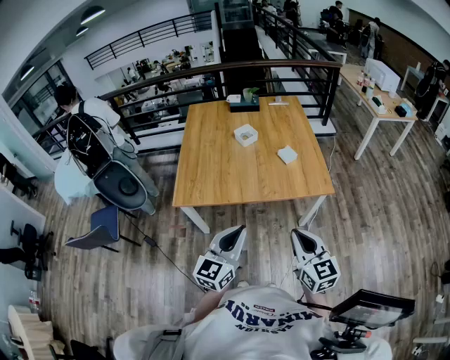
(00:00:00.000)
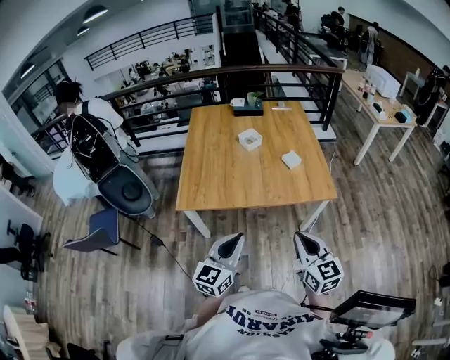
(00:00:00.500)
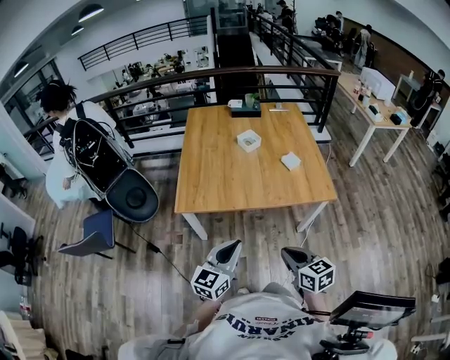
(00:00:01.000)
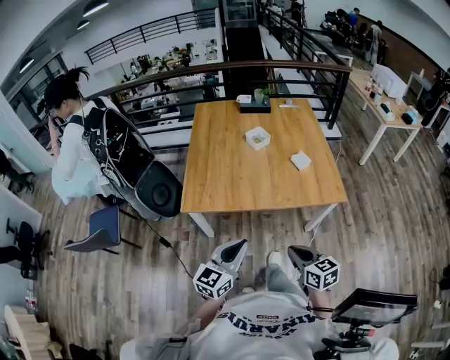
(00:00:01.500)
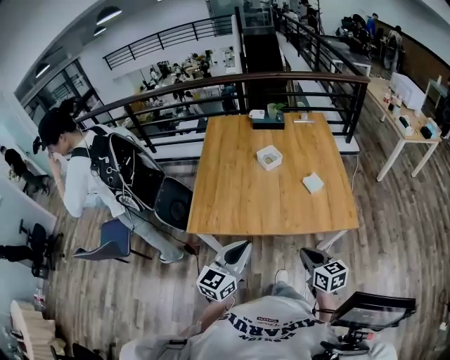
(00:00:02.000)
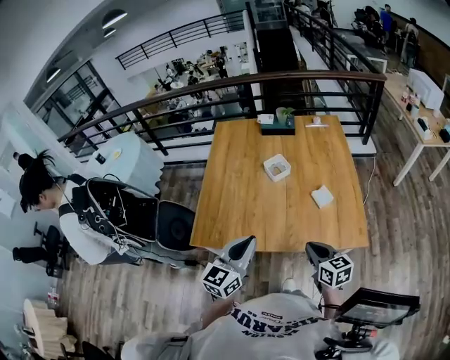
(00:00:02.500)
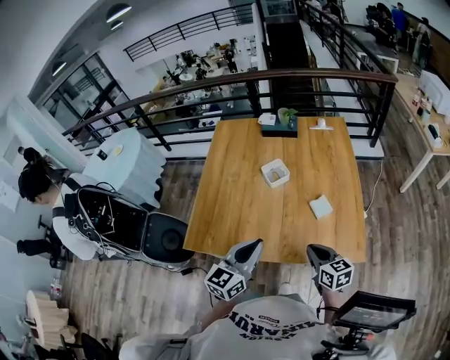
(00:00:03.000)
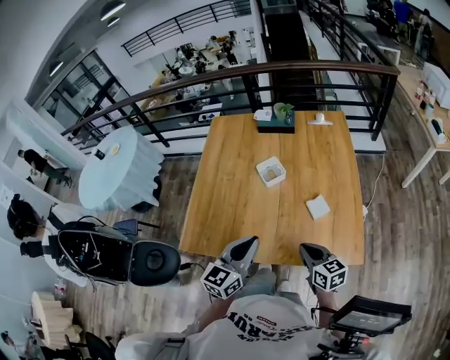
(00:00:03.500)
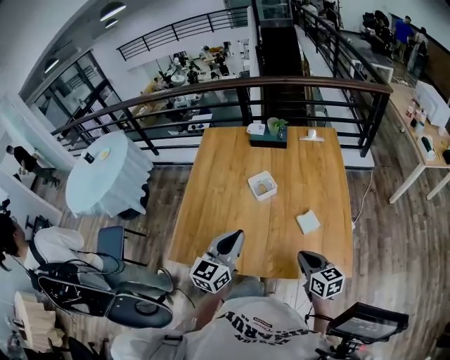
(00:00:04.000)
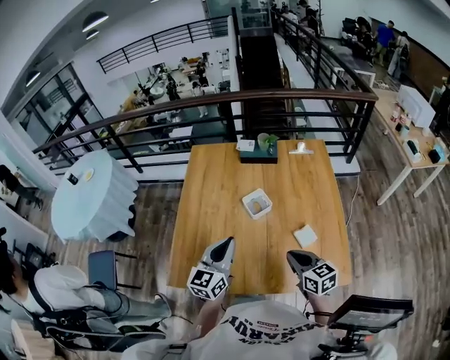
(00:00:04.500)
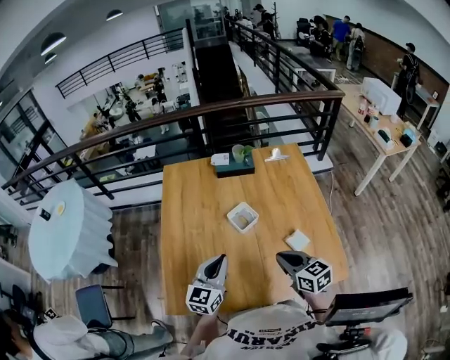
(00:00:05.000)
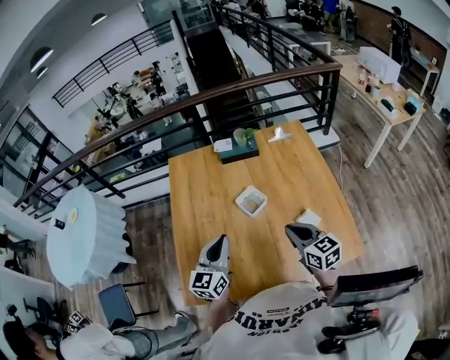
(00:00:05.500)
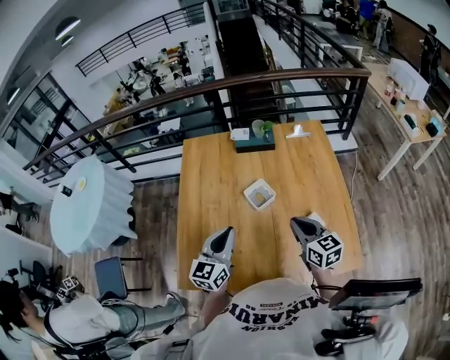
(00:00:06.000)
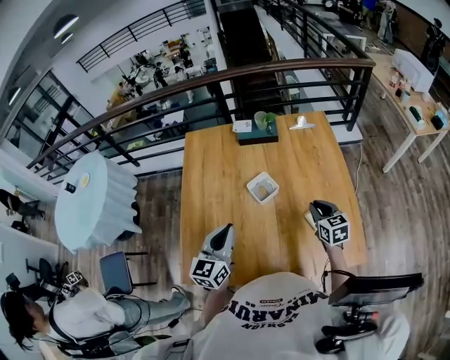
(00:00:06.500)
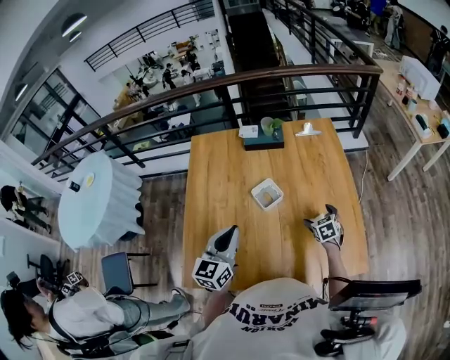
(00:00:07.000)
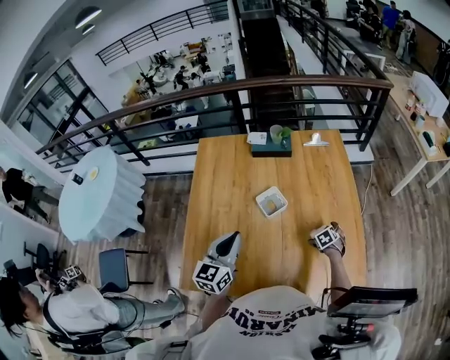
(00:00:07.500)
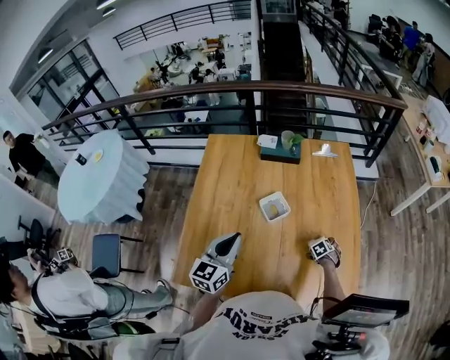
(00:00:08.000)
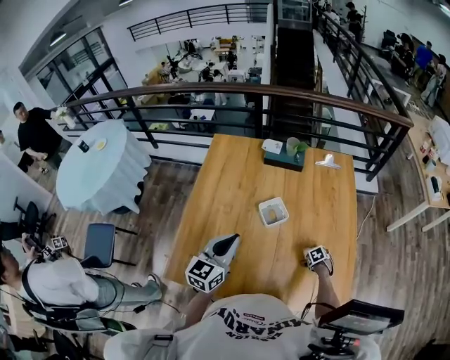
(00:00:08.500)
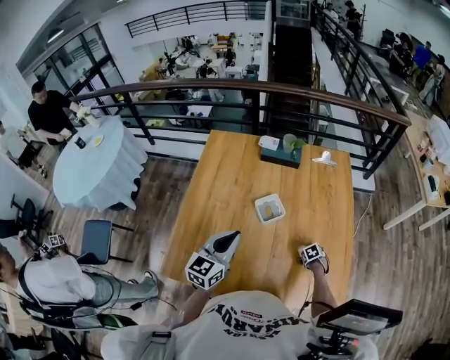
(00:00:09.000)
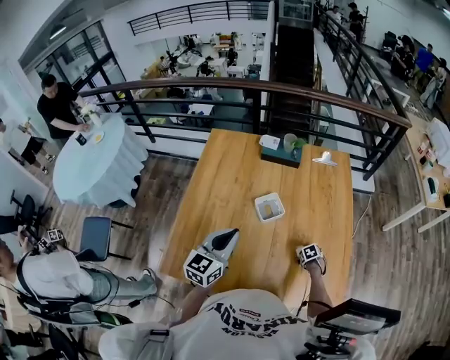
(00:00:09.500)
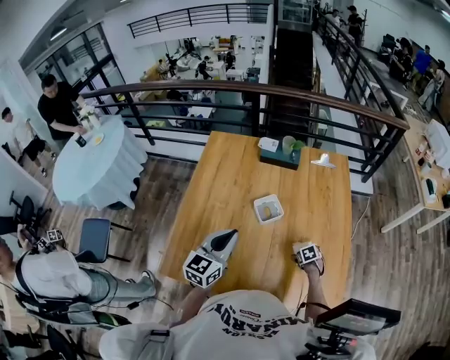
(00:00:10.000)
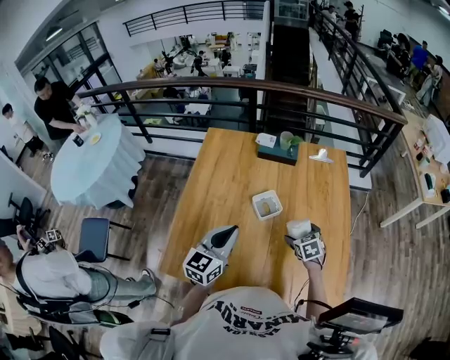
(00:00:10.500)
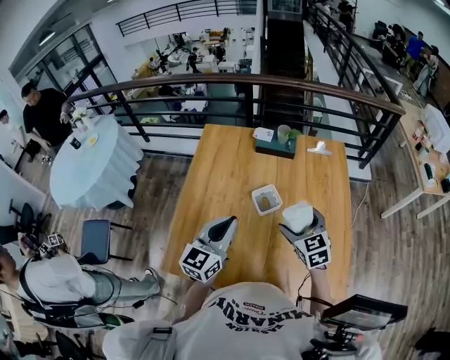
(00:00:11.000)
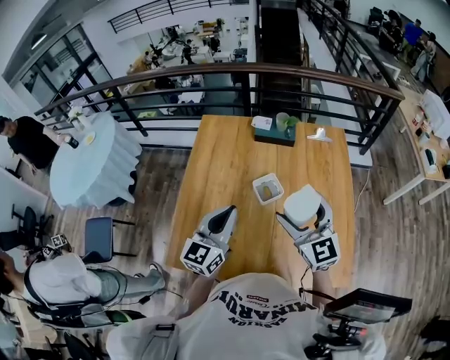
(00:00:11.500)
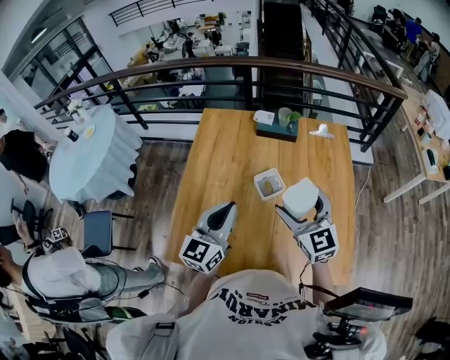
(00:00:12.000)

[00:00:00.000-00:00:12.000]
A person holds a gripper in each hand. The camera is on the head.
00:00:00.000 to 00:00:02.000: The left gripper goes roughly 15 cm forward and to the left; the right gripper is displaced forward and downward by some 20 cm, and swivels roughly 20 degrees.
00:00:02.000 to 00:00:04.000: The left gripper heads forward, covering some 30 cm, while the right gripper heads forward and to the right, covering approximately 30 cm.
00:00:04.000 to 00:00:06.000: The left gripper shifts about 15 cm forward and to the left, while the right gripper shifts approximately 20 cm forward, upward and to the left.
00:00:06.000 to 00:00:08.000: The right gripper heads downward, covering some 40 cm, points its fingers approximately 60 degrees further downward, and opens.
00:00:08.000 to 00:00:10.000: The right gripper shifts by some 5 cm.
00:00:10.000 to 00:00:12.000: The left gripper moves upward, some 5 cm. The right gripper goes approximately 40 cm upward, and points its fingers roughly 70 degrees further upward.

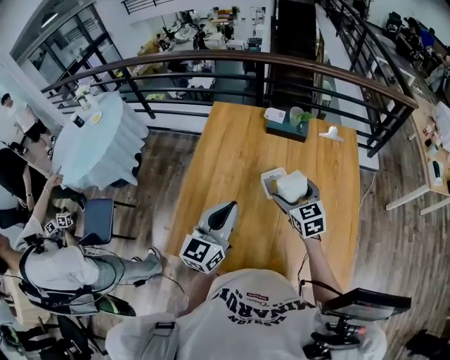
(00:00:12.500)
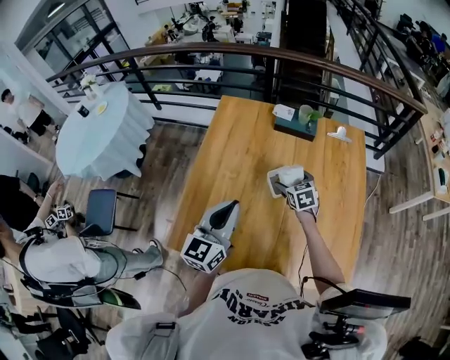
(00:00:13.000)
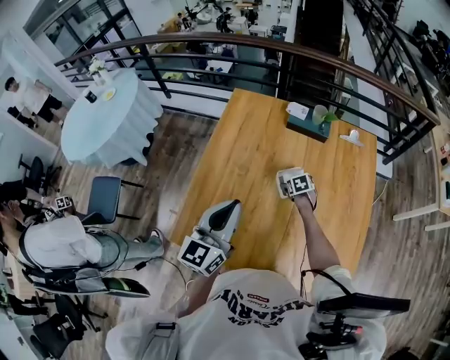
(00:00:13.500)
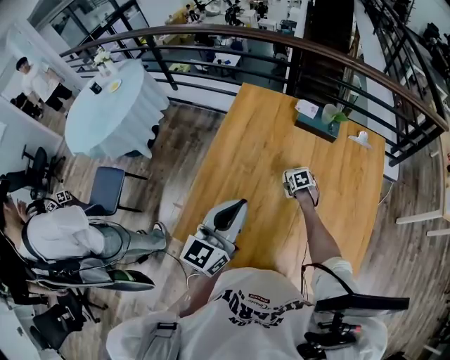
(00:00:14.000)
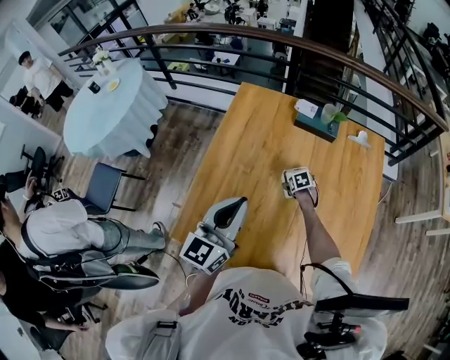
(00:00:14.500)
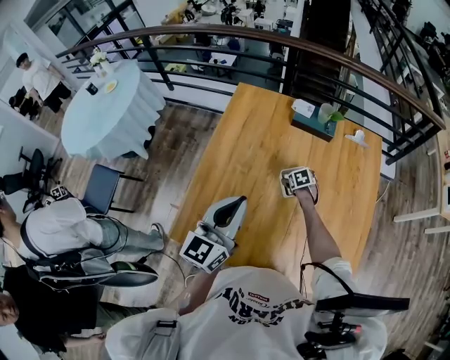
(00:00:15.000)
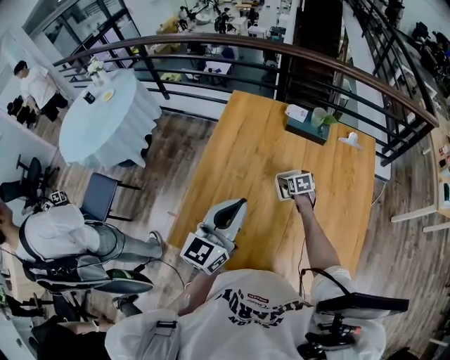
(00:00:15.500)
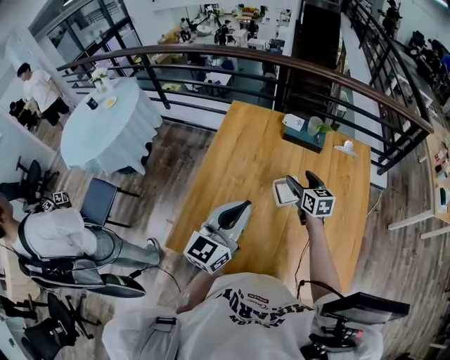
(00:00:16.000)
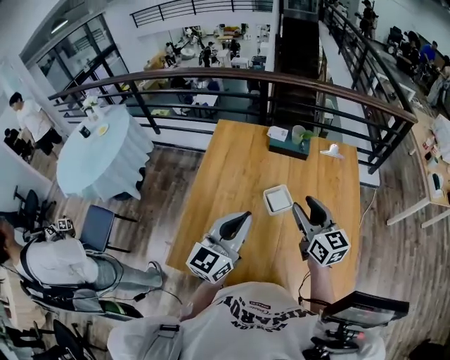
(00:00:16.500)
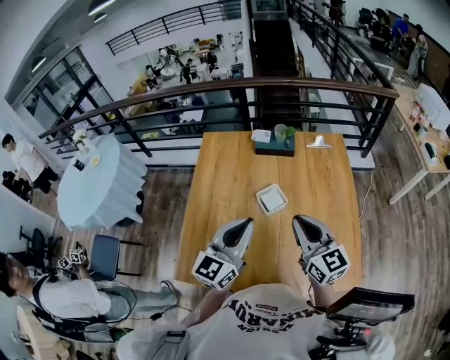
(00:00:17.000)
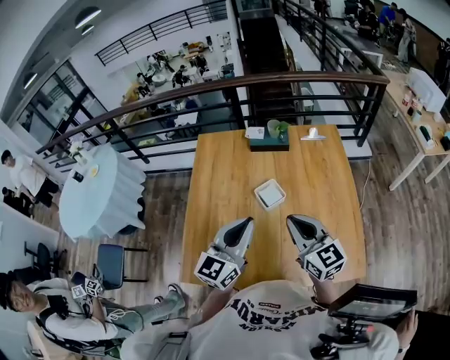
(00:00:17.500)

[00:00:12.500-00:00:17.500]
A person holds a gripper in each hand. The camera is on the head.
00:00:12.500 to 00:00:15.000: The right gripper shifts roughly 30 cm downward and forward, and tilts its fingers some 40 degrees downward. Meanwhile the left gripper ends up about 5 cm from where it was.
00:00:15.000 to 00:00:17.500: The left gripper goes roughly 15 cm to the right and backward. The right gripper shifts roughly 50 cm upward and backward, tilts its fingers approximately 60 degrees upward, and closes.

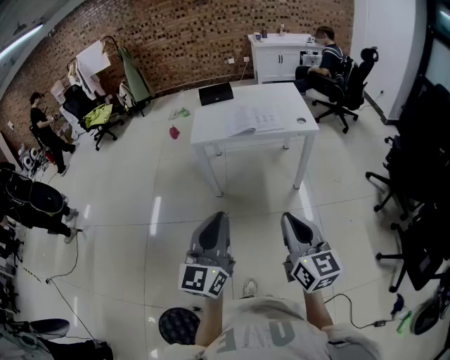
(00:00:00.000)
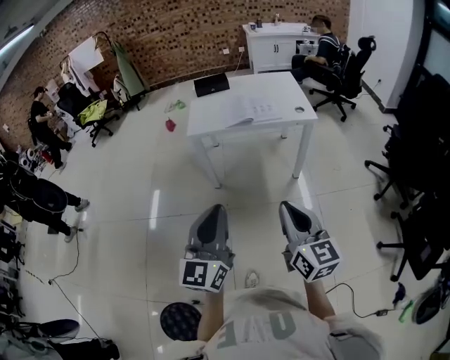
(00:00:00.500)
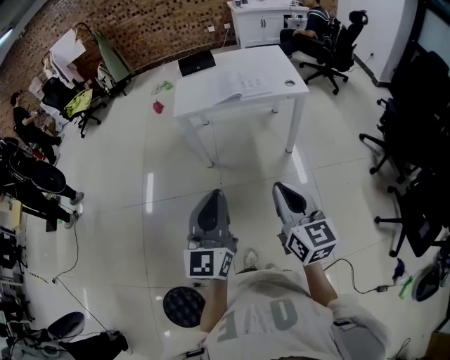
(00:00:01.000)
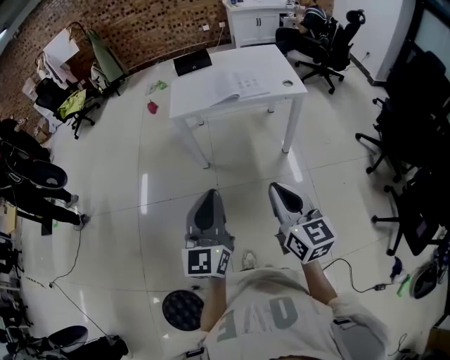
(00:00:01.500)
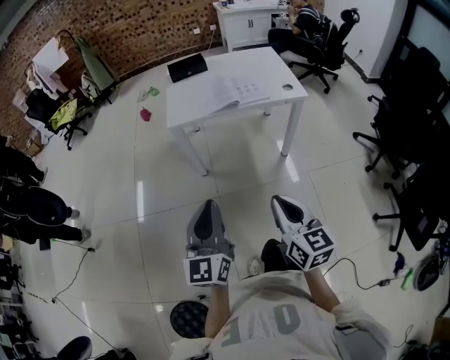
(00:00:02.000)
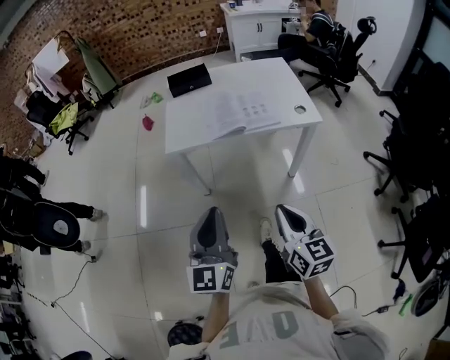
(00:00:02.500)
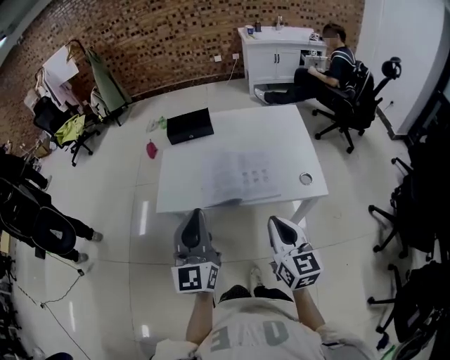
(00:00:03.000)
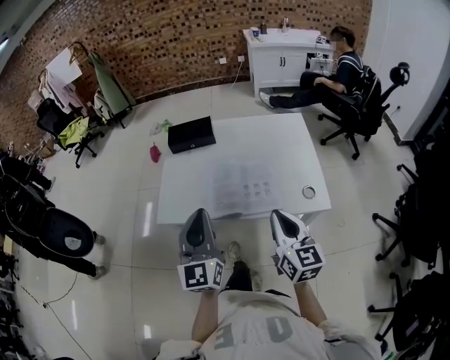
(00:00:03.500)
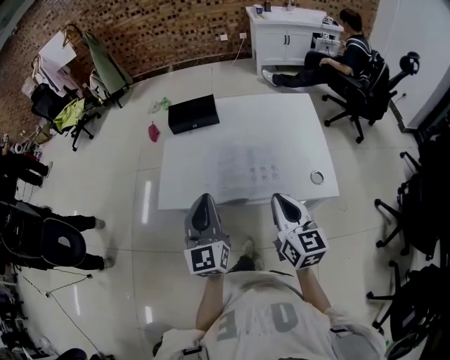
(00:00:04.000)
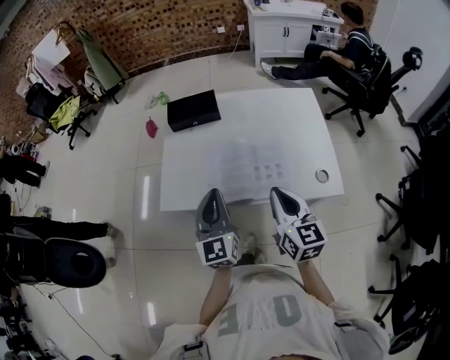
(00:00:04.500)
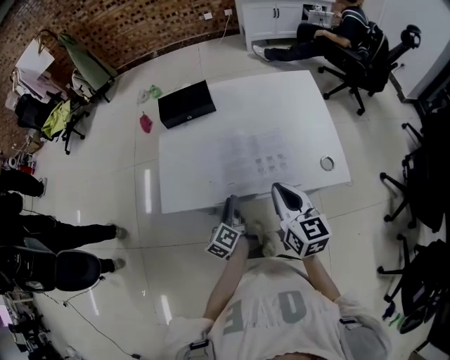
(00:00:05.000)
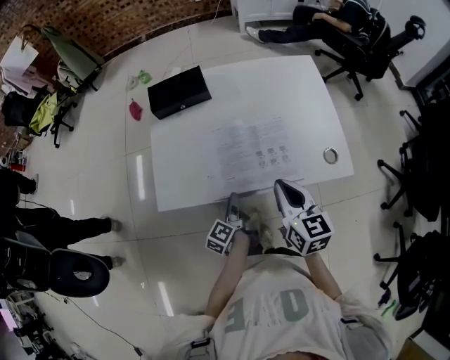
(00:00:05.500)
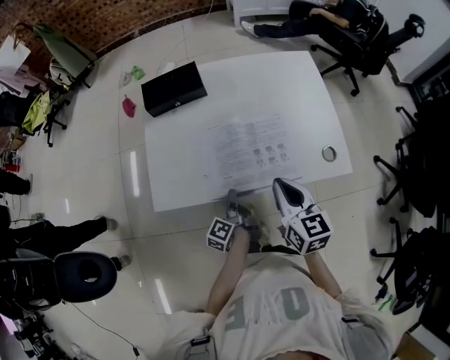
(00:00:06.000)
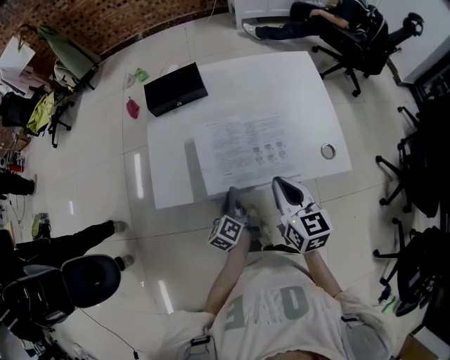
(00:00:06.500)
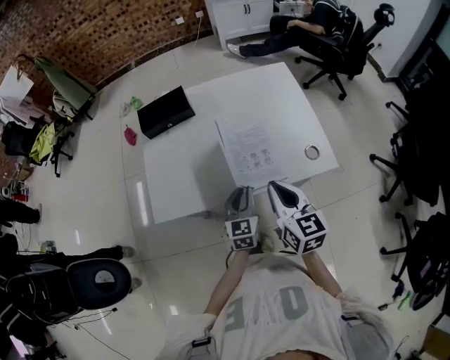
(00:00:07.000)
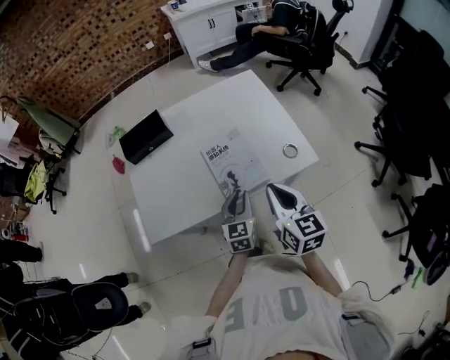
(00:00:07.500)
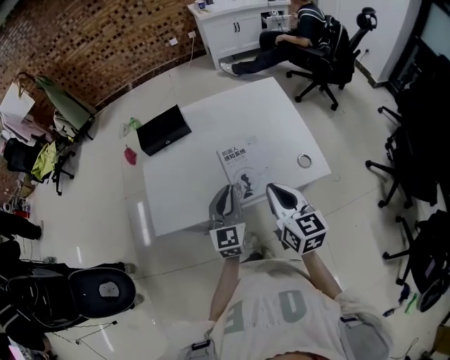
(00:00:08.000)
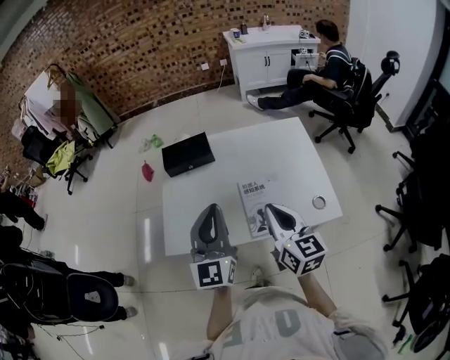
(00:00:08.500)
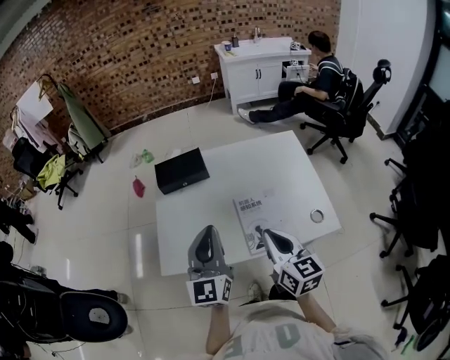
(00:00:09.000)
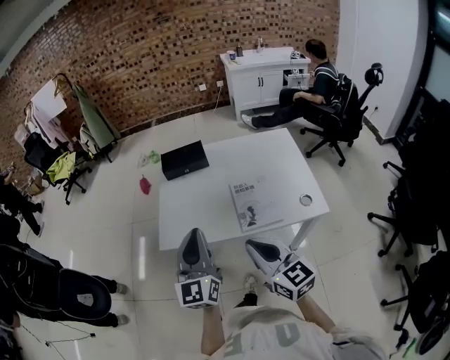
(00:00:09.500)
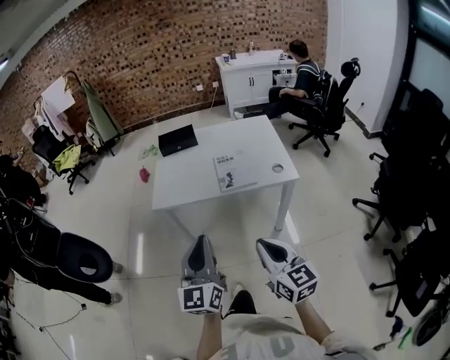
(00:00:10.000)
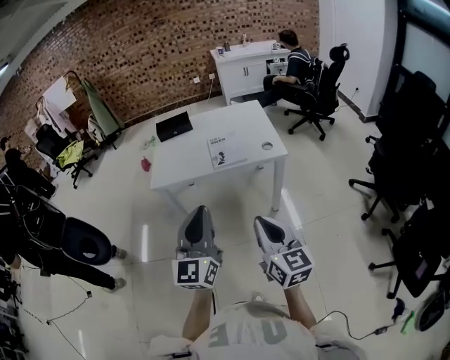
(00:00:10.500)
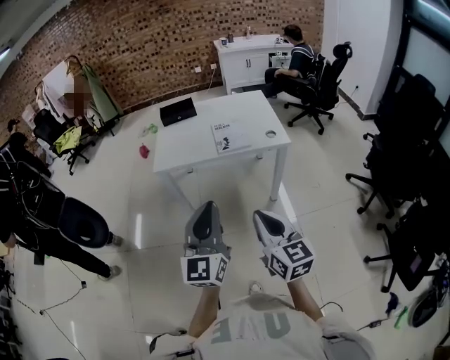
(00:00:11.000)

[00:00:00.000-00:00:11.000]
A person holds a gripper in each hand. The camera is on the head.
00:00:00.000 to 00:00:02.000: The two grippers go some 10 cm forward and downward.
00:00:02.000 to 00:00:03.500: Both grippers are carried forward, about 50 cm.
00:00:03.500 to 00:00:05.500: The right gripper is displaced forward and downward by some 10 cm; the left gripper heads downward, covering approximately 30 cm, rolls counterclockwise, seen from behind, by about 80 degrees, and opens.
00:00:05.500 to 00:00:07.500: The right gripper goes about 10 cm to the right and backward. The left gripper moves to the right and upward, approximately 20 cm, and rotates around the line of its fingers by roughly 80 degrees, clockwise from behind.
00:00:07.500 to 00:00:09.000: The right gripper travels to the left and forward by approximately 10 cm, while the left gripper is displaced upward and to the left by some 25 cm, and swivels approximately 30 degrees.
00:00:09.000 to 00:00:11.000: Both grippers are carried backward, roughly 50 cm.
